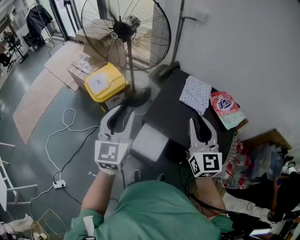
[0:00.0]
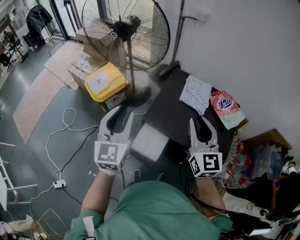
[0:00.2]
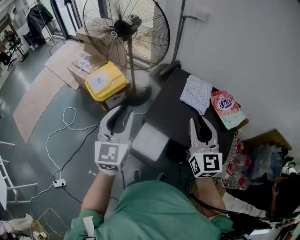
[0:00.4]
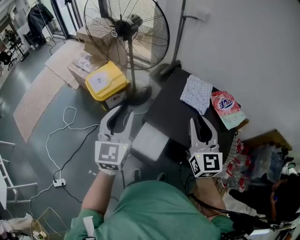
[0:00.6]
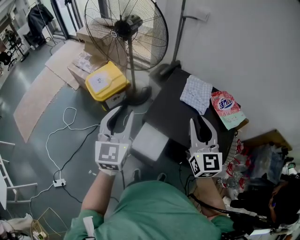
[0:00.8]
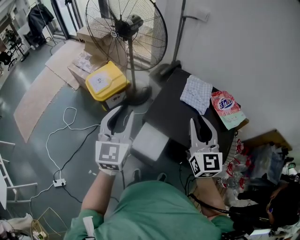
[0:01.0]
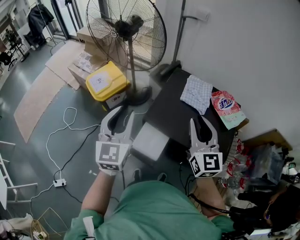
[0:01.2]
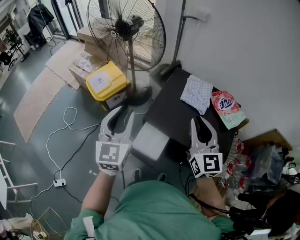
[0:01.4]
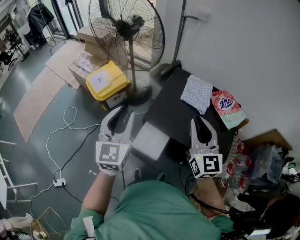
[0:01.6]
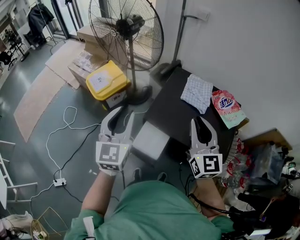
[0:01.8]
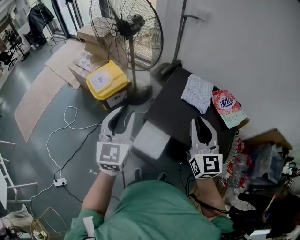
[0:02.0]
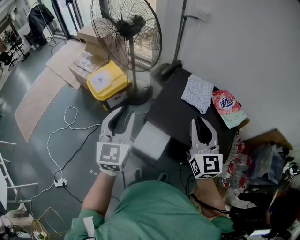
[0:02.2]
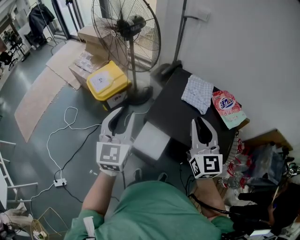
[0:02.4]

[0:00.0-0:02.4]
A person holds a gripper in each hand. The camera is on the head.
0:00.0 to 0:01.2: Neither gripper changes place.
0:01.2 to 0:02.4: Both grippers stay put.

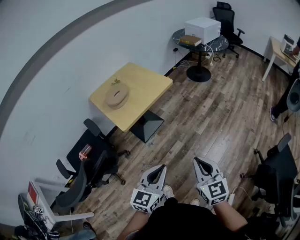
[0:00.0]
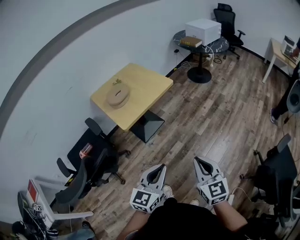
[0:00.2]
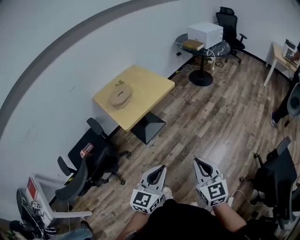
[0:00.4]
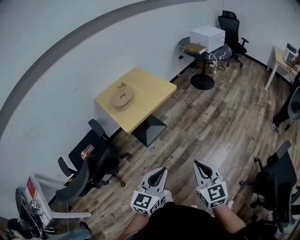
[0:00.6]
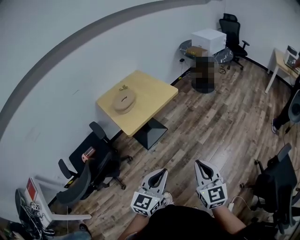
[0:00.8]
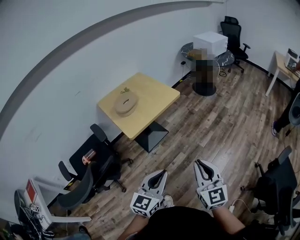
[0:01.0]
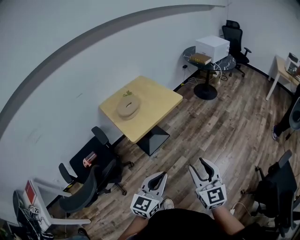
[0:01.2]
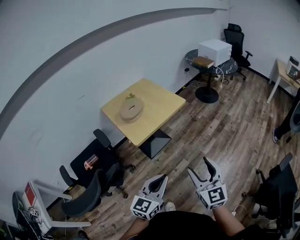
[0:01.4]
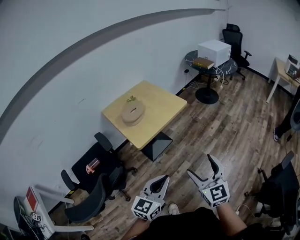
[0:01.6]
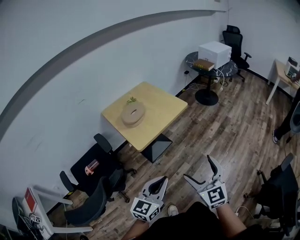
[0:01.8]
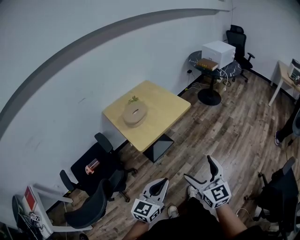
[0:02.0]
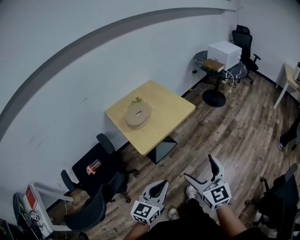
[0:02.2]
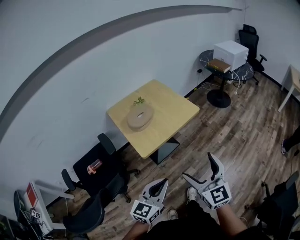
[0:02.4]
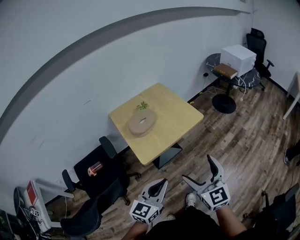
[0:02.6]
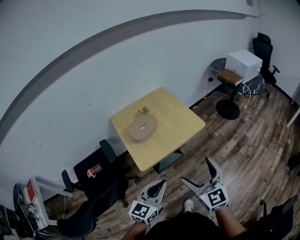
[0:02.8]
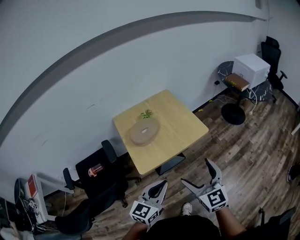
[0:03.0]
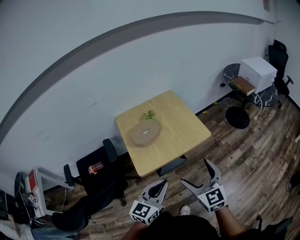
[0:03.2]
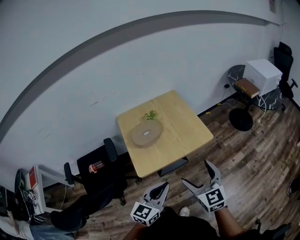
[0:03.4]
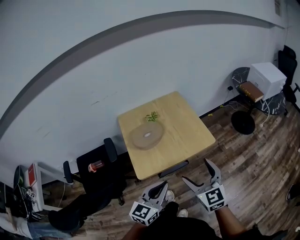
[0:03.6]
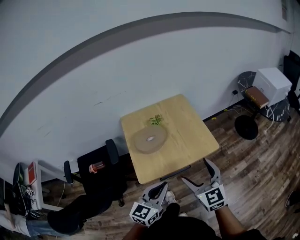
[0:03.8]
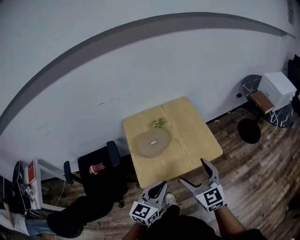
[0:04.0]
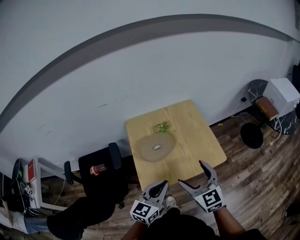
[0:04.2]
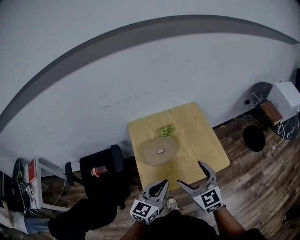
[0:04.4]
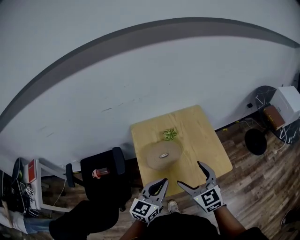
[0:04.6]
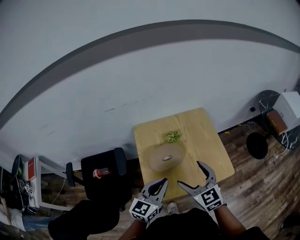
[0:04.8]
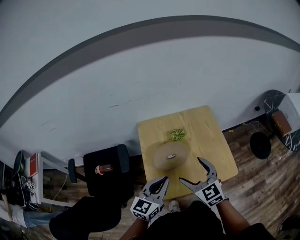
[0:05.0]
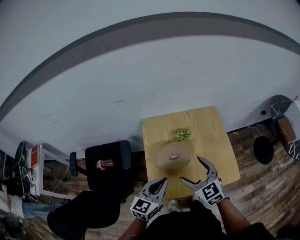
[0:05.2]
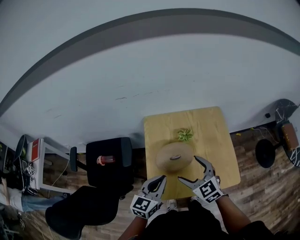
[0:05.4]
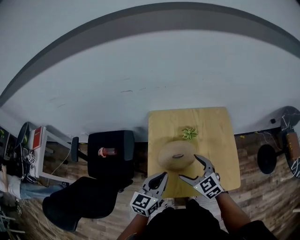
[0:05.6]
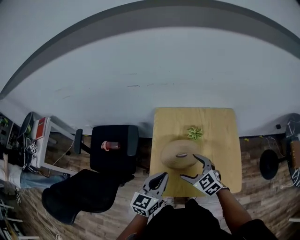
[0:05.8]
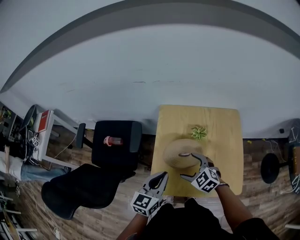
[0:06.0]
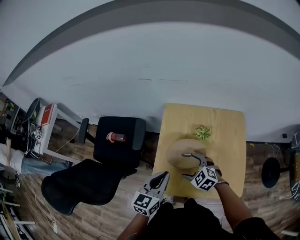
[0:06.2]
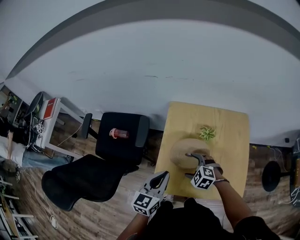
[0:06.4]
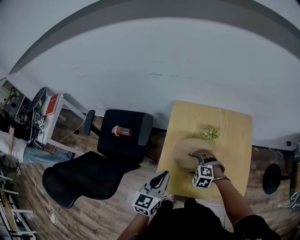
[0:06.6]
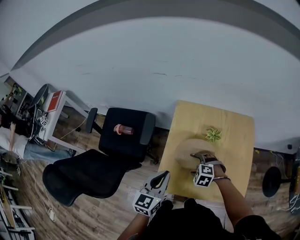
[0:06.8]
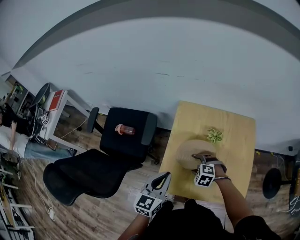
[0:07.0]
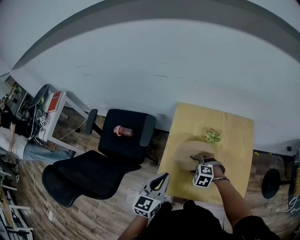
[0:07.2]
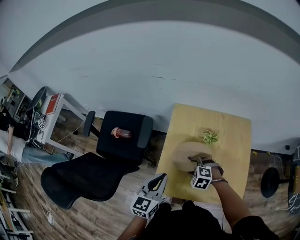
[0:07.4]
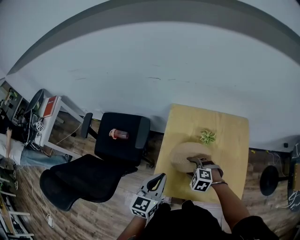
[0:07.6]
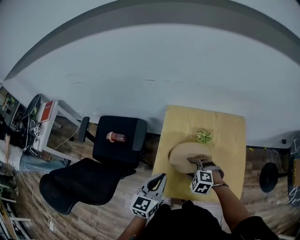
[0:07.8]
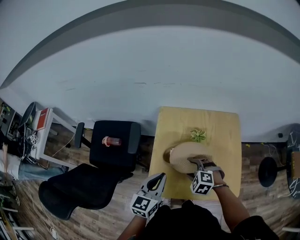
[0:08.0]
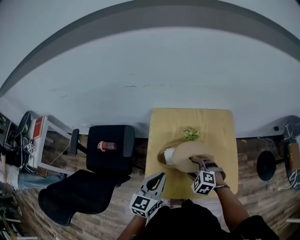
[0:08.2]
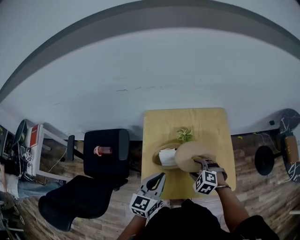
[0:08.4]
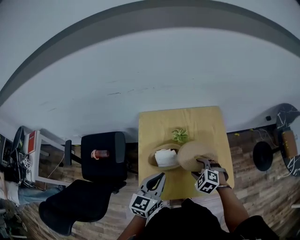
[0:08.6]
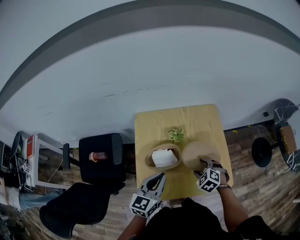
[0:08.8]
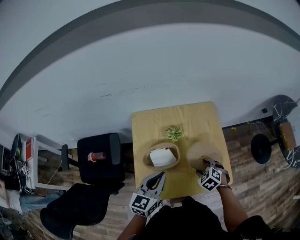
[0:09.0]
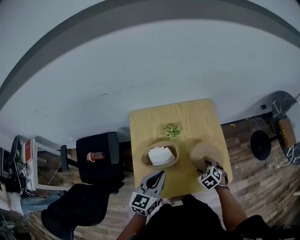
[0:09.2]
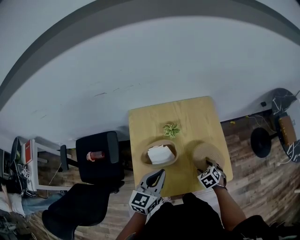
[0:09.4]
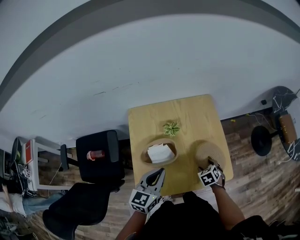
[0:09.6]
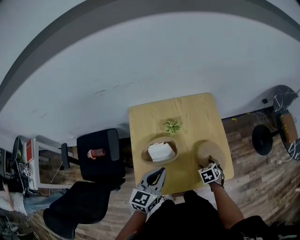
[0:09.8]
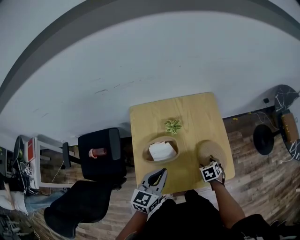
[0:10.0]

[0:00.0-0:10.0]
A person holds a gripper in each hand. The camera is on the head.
0:00.0 to 0:01.4: The left gripper moves to the left, some 5 cm. The right gripper is displaced to the left and upward by approximately 10 cm, and opens up.
0:01.4 to 0:02.8: Both grippers move forward, about 25 cm. The right gripper opens its fingers.
0:02.8 to 0:04.2: Both grippers travel together forward, about 20 cm. The right gripper rotates about 20 degrees.
0:04.2 to 0:05.8: The right gripper shifts by about 25 cm, and changes its angle by approximately 40 degrees; the left gripper ends up approximately 15 cm from where it was, and swivels some 20 degrees.
0:05.8 to 0:07.2: The left gripper is displaced to the left by approximately 5 cm; the right gripper heads downward, covering some 10 cm, and angles its fingers downward, by approximately 30 degrees.
0:07.2 to 0:08.6: The right gripper changes place by some 15 cm, and turns by some 30 degrees, while the left gripper ends up roughly 10 cm from where it was.
0:08.6 to 0:10.0: The right gripper shifts some 15 cm to the right and downward, and twists roughly 50 degrees clockwise, seen from behind.

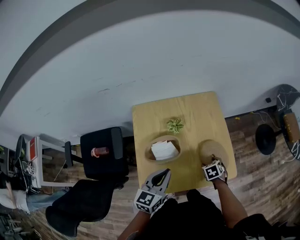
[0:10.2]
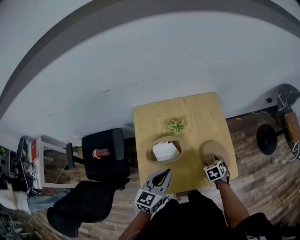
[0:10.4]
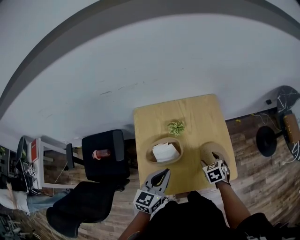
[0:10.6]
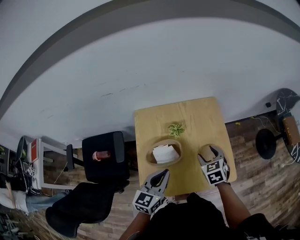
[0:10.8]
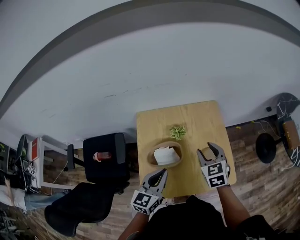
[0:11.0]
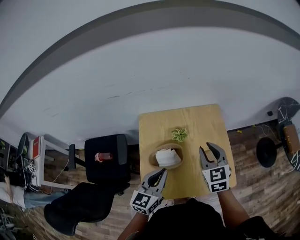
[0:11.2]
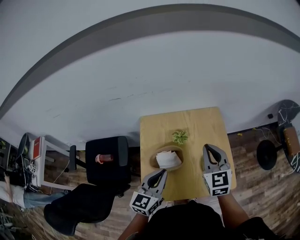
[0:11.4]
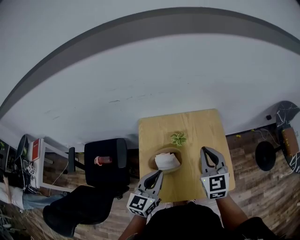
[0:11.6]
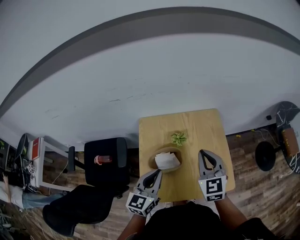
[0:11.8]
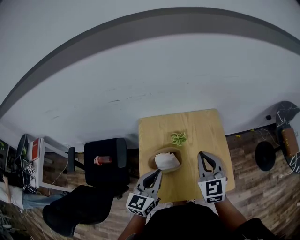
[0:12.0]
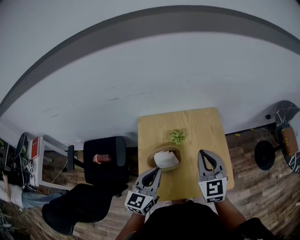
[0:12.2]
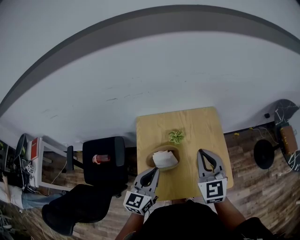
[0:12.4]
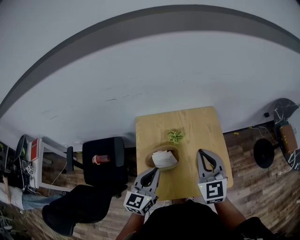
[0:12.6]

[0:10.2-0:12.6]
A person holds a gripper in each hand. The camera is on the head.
0:10.2 to 0:11.4: The left gripper is displaced upward by some 5 cm, while the right gripper moves upward, approximately 30 cm, angles its fingers upward, by approximately 50 degrees, and closes.
0:11.4 to 0:12.6: The grippers stay close to where they were, moving slightly.

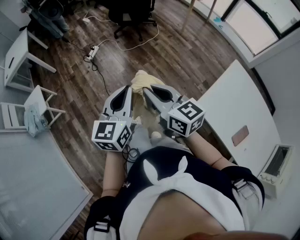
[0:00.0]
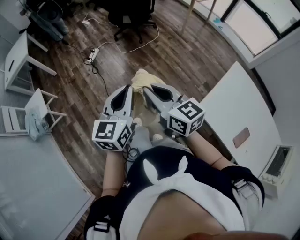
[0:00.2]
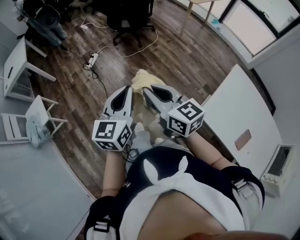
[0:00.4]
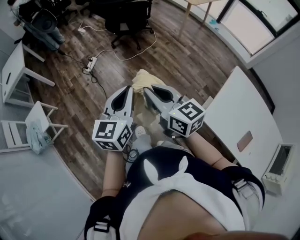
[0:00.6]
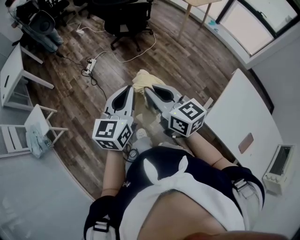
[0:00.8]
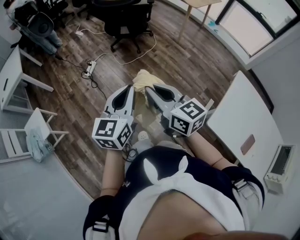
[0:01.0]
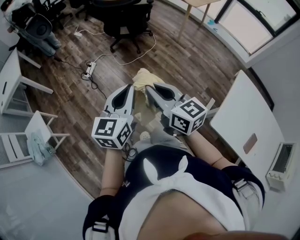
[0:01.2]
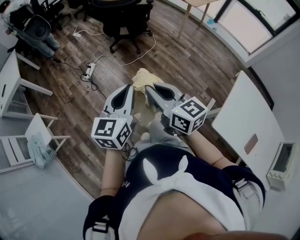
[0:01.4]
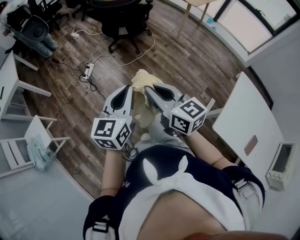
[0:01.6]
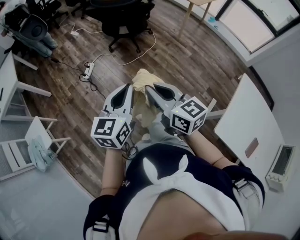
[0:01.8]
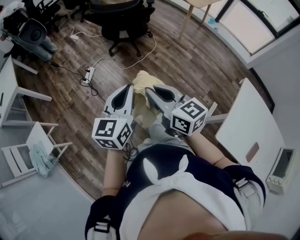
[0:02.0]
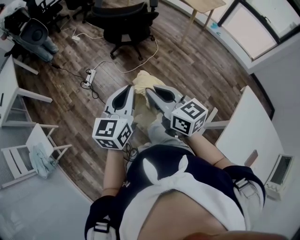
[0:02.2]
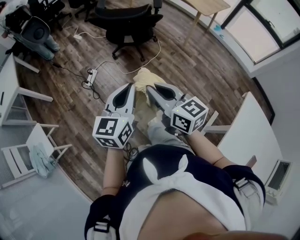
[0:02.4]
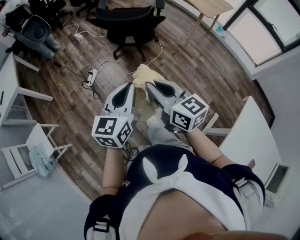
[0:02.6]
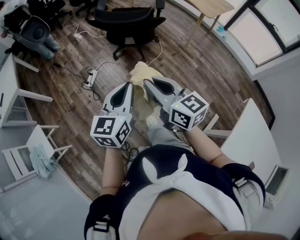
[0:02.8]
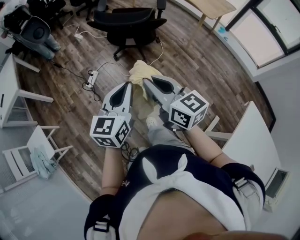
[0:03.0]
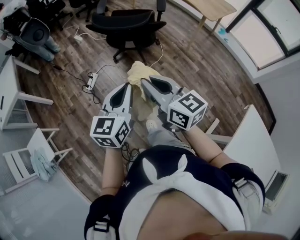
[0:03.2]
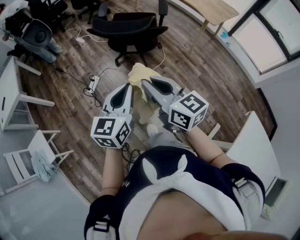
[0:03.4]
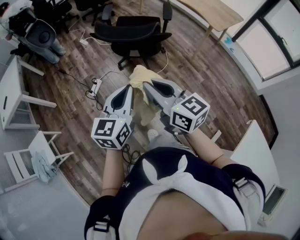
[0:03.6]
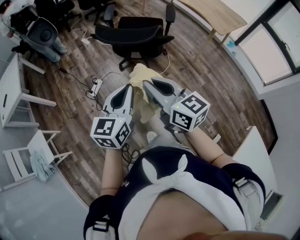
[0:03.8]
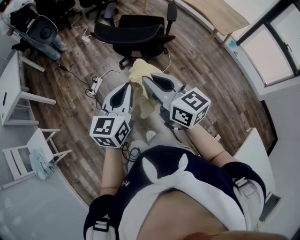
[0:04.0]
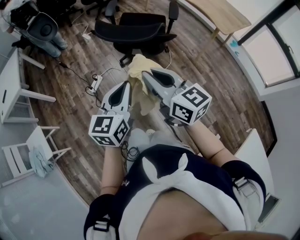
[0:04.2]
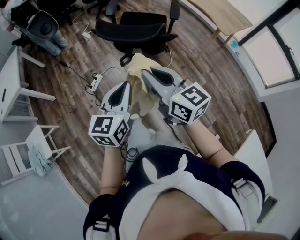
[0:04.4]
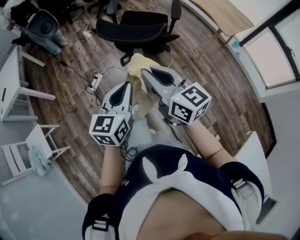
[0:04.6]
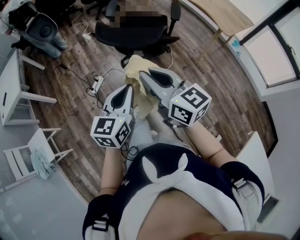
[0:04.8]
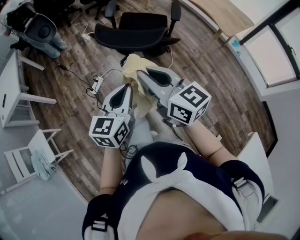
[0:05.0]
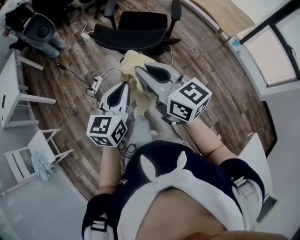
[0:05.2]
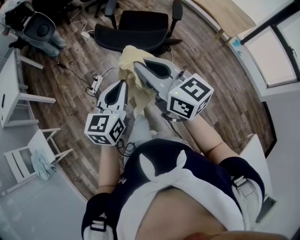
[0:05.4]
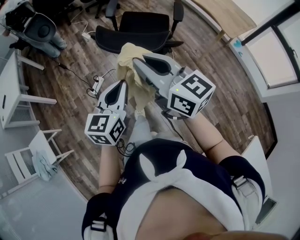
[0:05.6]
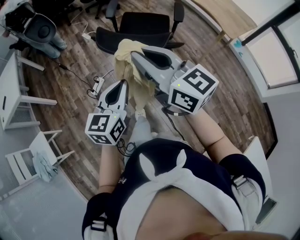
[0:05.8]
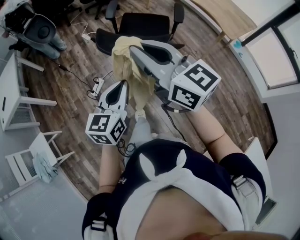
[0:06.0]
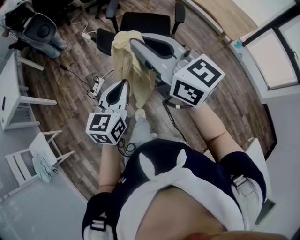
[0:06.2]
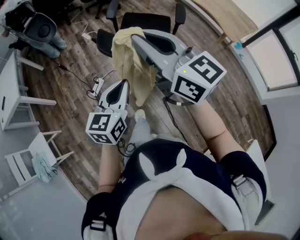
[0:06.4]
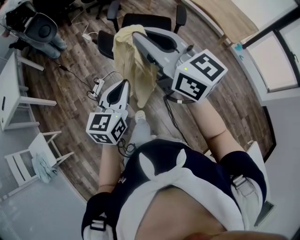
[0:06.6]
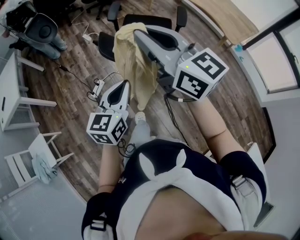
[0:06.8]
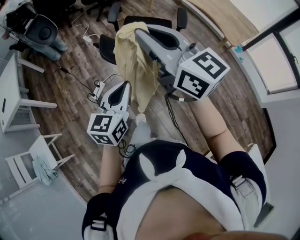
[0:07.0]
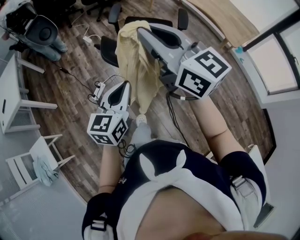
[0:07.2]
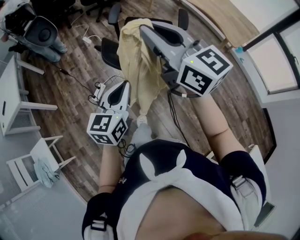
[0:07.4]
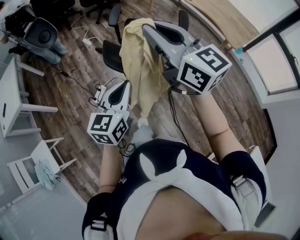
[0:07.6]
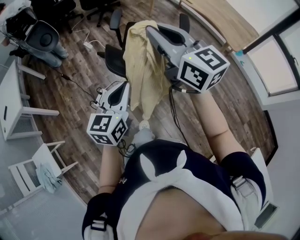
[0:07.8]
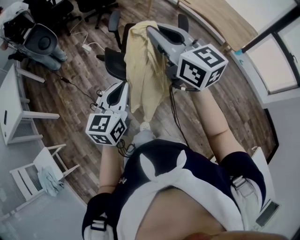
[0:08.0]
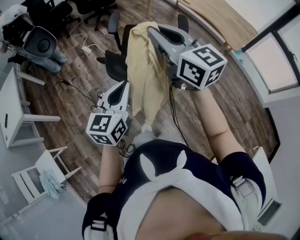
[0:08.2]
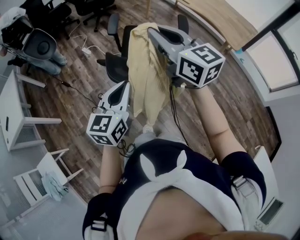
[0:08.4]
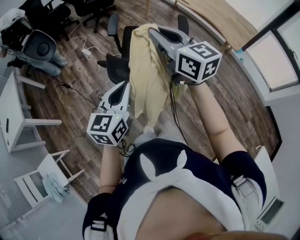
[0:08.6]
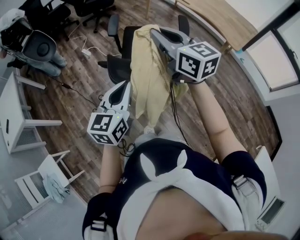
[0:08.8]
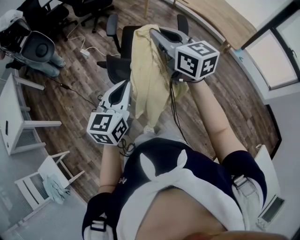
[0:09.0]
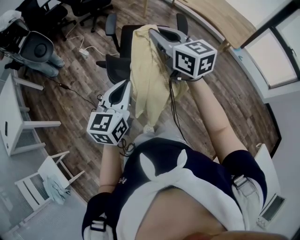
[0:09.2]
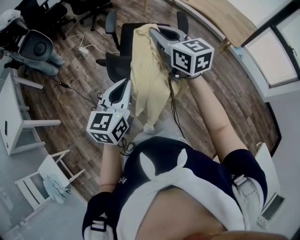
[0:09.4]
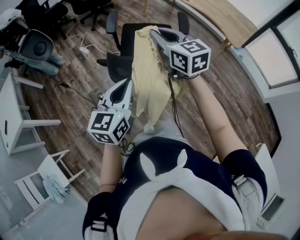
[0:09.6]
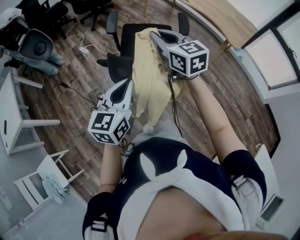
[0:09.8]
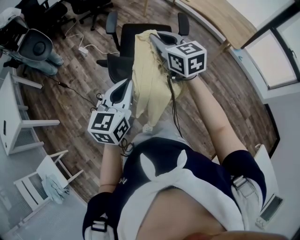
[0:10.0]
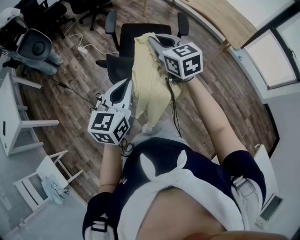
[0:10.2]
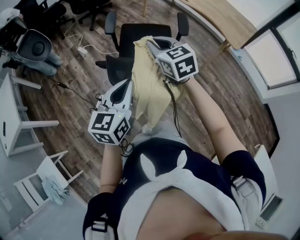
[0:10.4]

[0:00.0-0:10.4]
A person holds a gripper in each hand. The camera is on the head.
0:00.0 to 0:01.4: The two grippers go about 25 cm forward and to the left.
0:01.4 to 0:03.0: The two grippers go about 30 cm forward.
0:03.0 to 0:04.4: Both grippers move forward, about 15 cm.
0:04.4 to 0:06.0: The left gripper travels forward by roughly 10 cm, while the right gripper shifts some 15 cm forward and upward.
0:06.0 to 0:07.4: The two grippers go some 10 cm forward.
0:07.4 to 0:09.0: The left gripper heads forward, covering about 10 cm. Meanwhile the right gripper travels forward and downward by roughly 15 cm.
0:09.0 to 0:10.4: The right gripper shifts about 10 cm downward, and turns by approximately 20 degrees.
